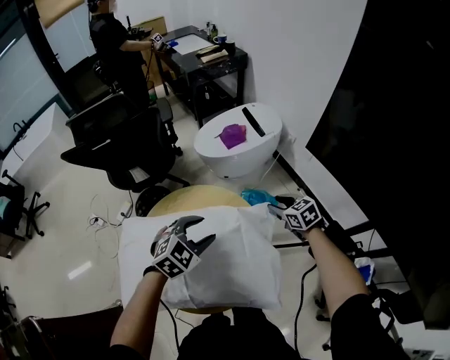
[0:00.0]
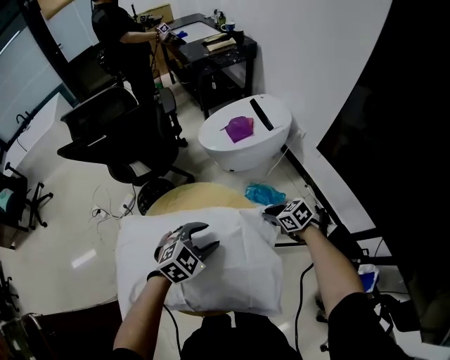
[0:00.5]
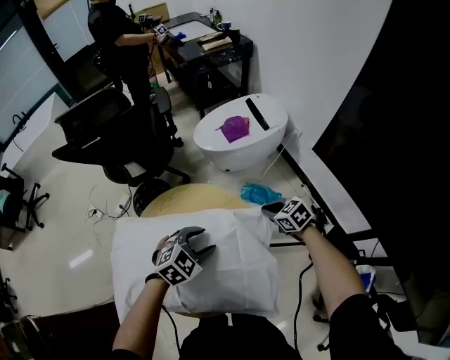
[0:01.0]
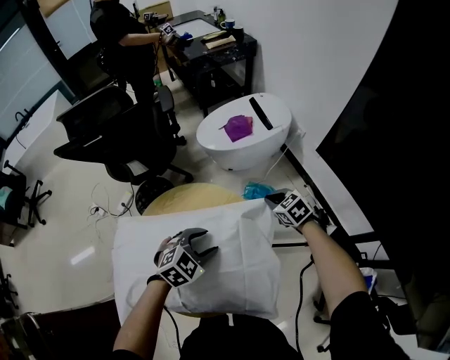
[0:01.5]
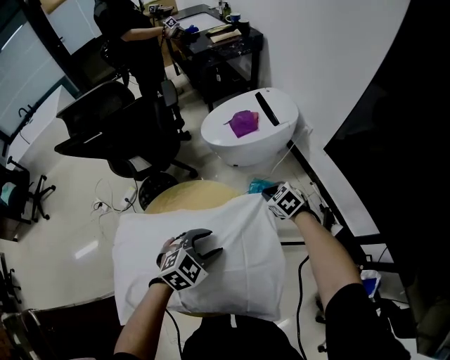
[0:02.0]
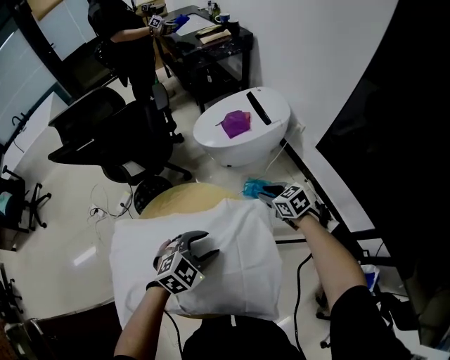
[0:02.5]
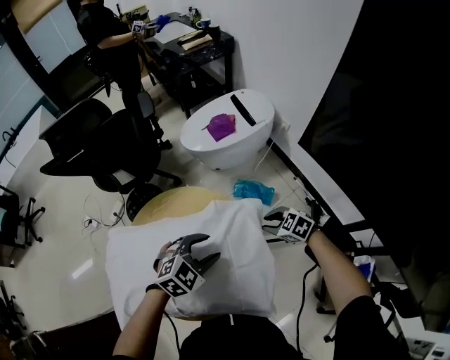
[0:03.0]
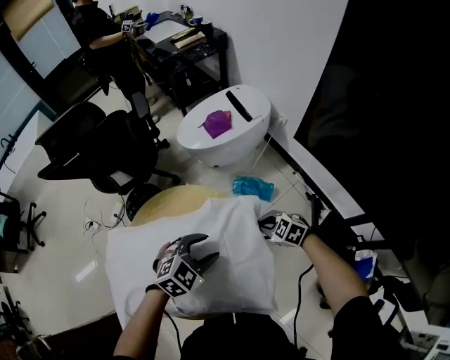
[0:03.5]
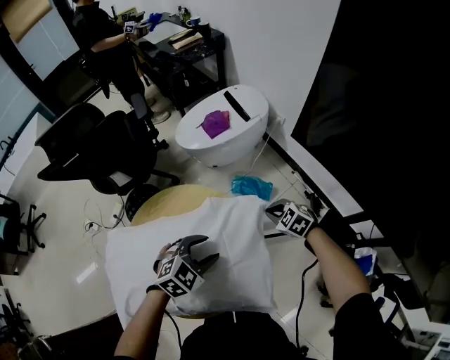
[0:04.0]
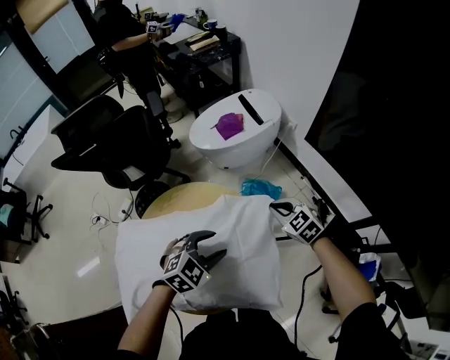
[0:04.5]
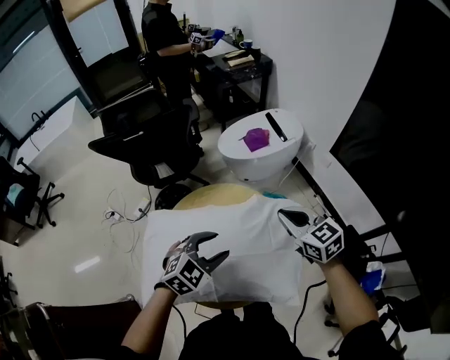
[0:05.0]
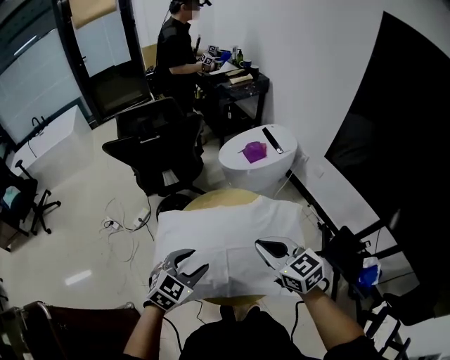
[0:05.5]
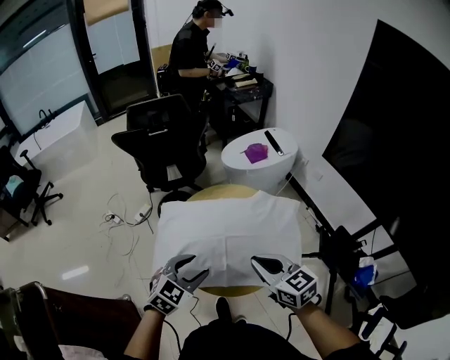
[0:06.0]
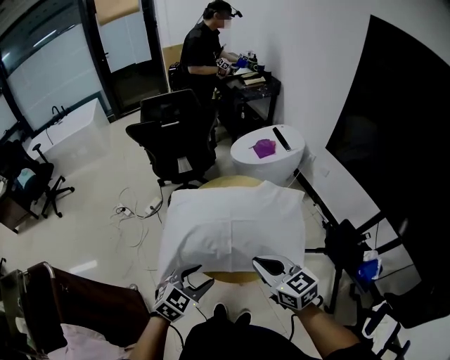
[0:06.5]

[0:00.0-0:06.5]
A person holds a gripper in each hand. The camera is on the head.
0:00.0 to 0:02.0: The right gripper is displaced downward and forward by about 10 cm, swivels about 20 degrees, and closes, while the left gripper goes about 5 cm downward.
0:02.0 to 0:04.5: The right gripper moves about 15 cm, and opens and closes again.
0:04.5 to 0:06.5: The right gripper goes about 50 cm backward, to the left and upward, and swivels about 30 degrees. Meanwhile the left gripper heads backward and to the left, covering some 35 cm, and rotates approximately 20 degrees.

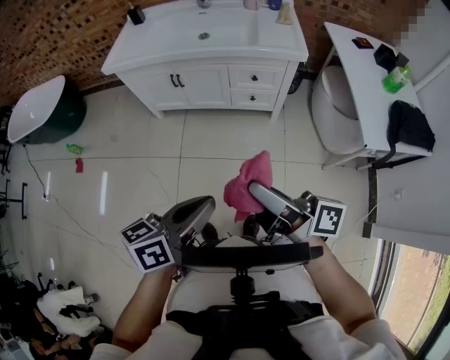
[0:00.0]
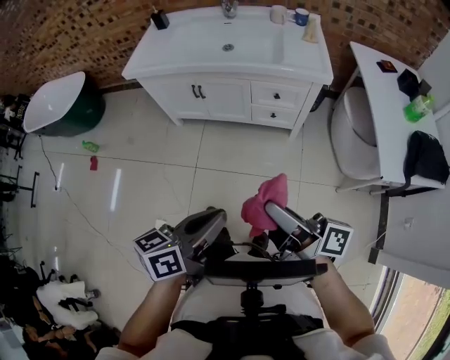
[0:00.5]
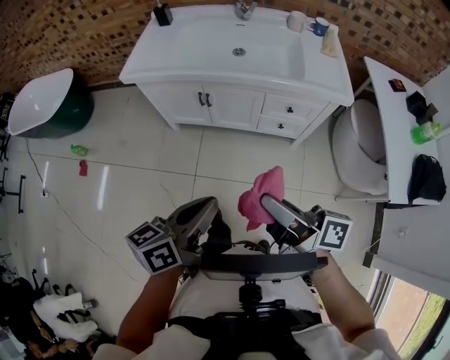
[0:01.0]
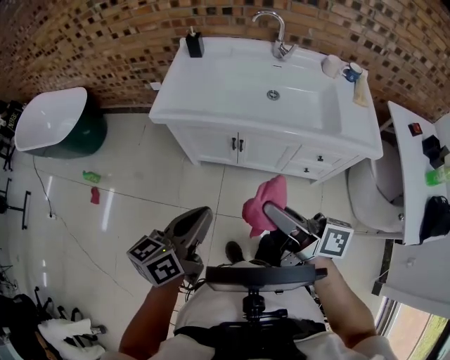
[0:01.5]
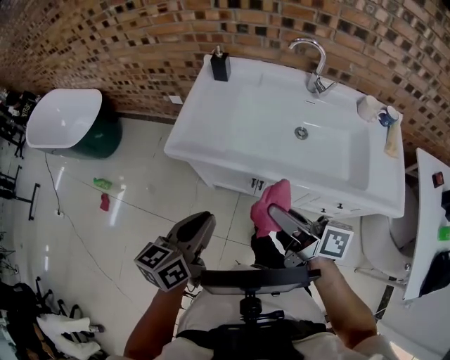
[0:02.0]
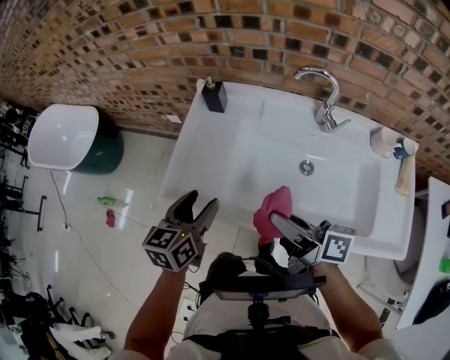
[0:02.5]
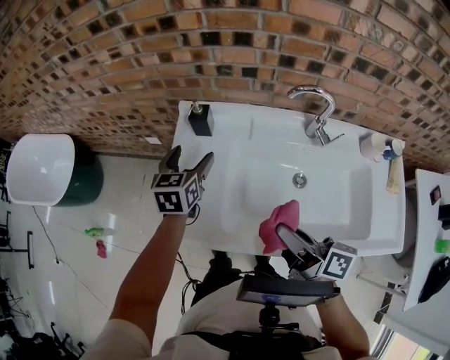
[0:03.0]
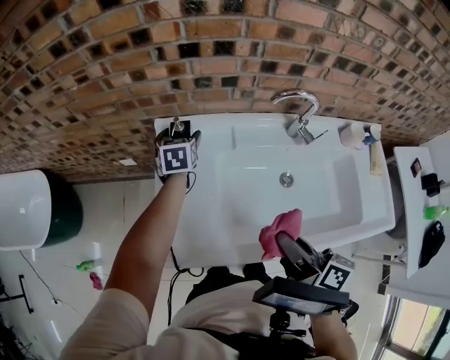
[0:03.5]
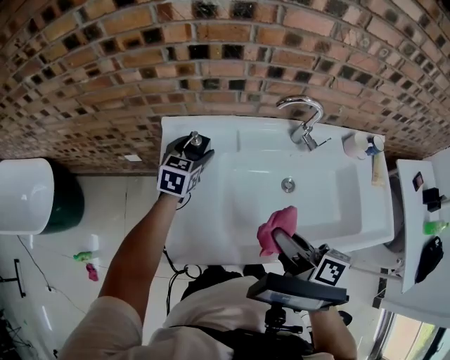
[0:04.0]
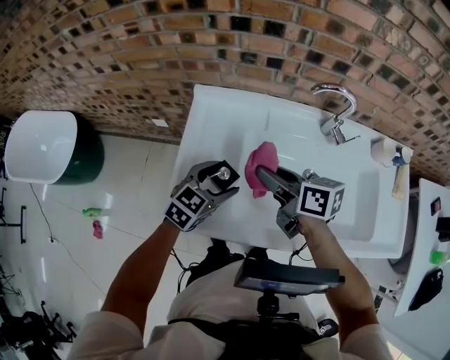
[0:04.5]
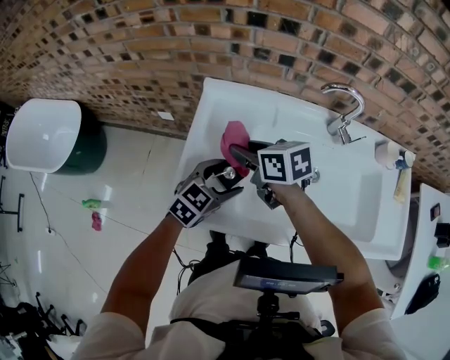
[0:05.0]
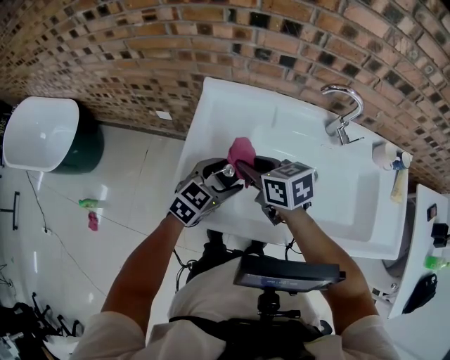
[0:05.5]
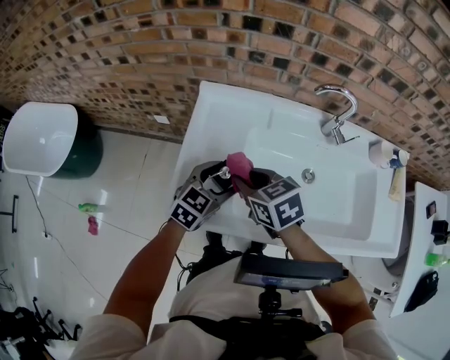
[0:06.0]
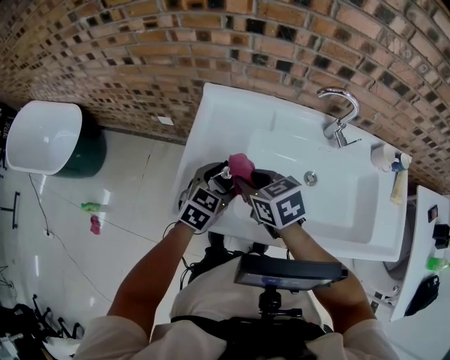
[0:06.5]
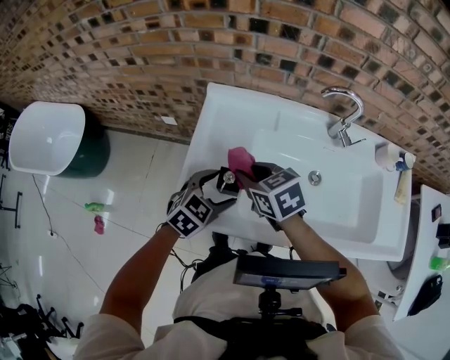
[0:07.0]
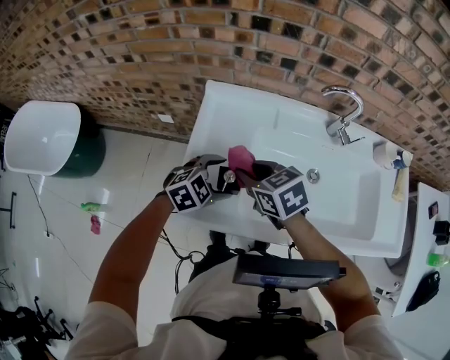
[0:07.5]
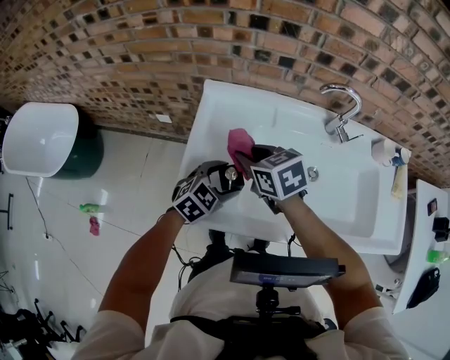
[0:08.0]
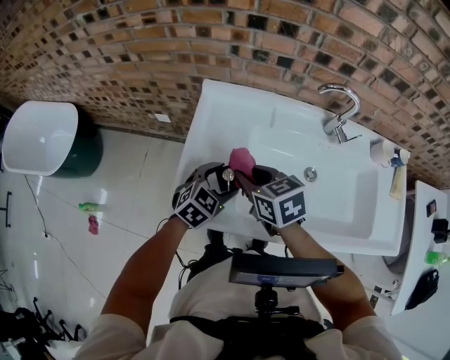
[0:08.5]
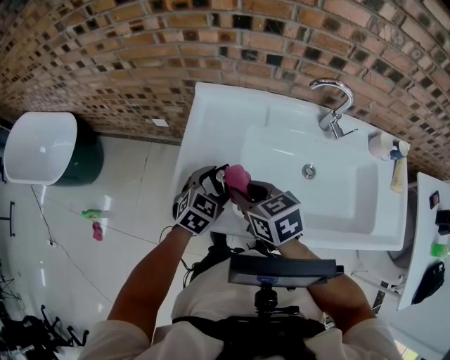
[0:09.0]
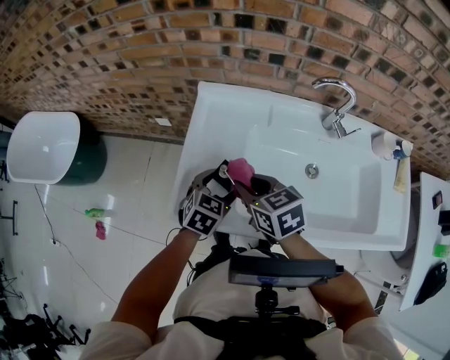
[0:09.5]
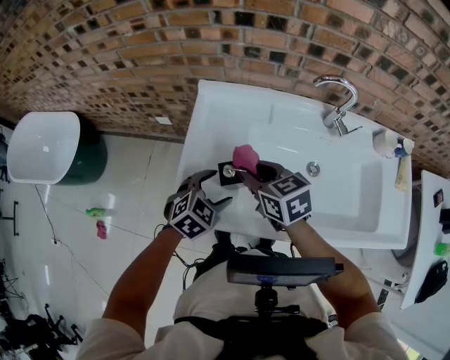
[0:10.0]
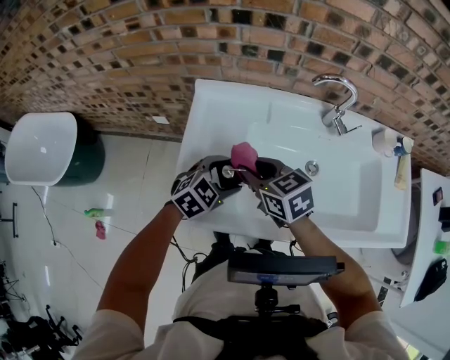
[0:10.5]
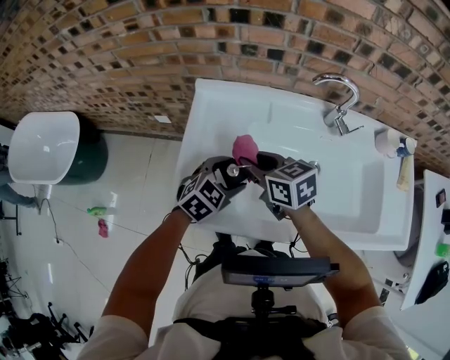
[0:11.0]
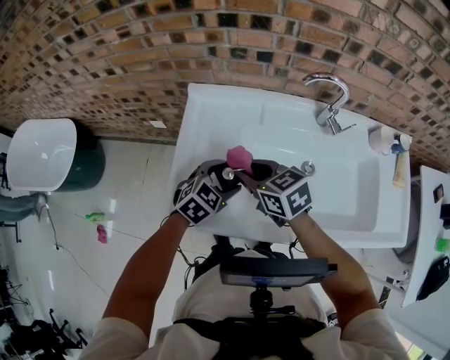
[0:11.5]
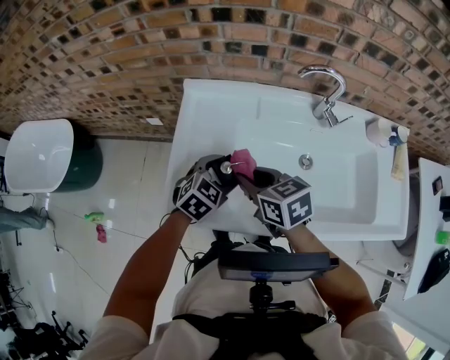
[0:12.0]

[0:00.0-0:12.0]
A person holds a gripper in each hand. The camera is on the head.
0:00.0 to 0:02.0: Both grippers are carried forward and to the left, some 70 cm. The left gripper swivels approximately 30 degrees.
0:02.0 to 0:04.0: The right gripper goes about 30 cm forward, and turns by roughly 30 degrees. The left gripper shifts some 60 cm forward, changes its angle by some 40 degrees, and opens up.
0:04.0 to 0:06.0: The right gripper is displaced to the left by some 15 cm, and rotates some 60 degrees. The left gripper goes some 20 cm backward.
0:06.0 to 0:08.0: The right gripper heads forward, covering roughly 5 cm.
0:10.0 to 0:12.0: The left gripper shifts roughly 5 cm to the right.

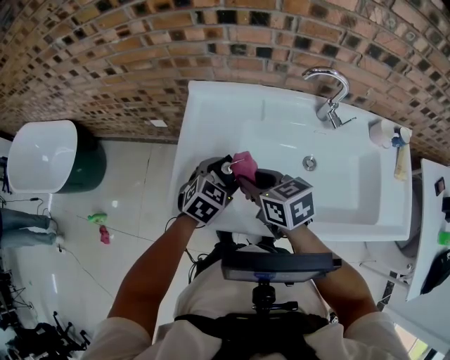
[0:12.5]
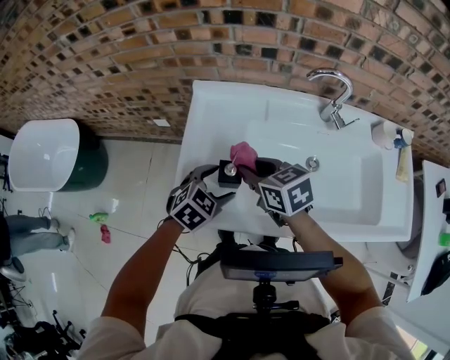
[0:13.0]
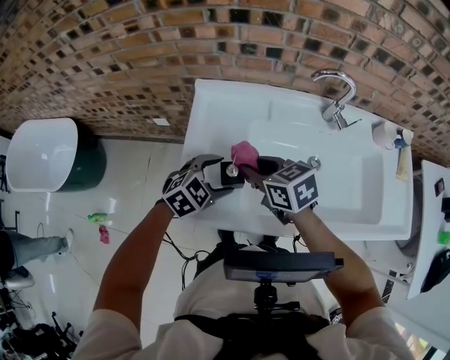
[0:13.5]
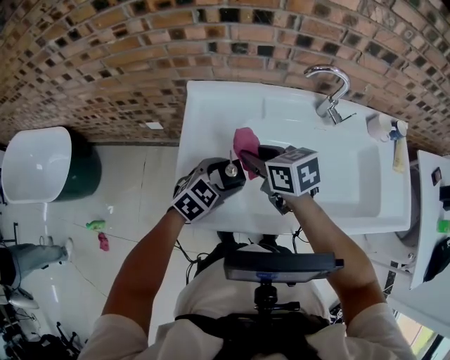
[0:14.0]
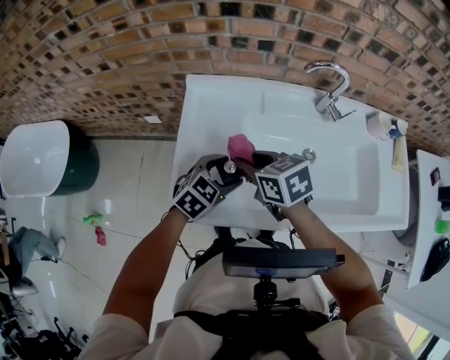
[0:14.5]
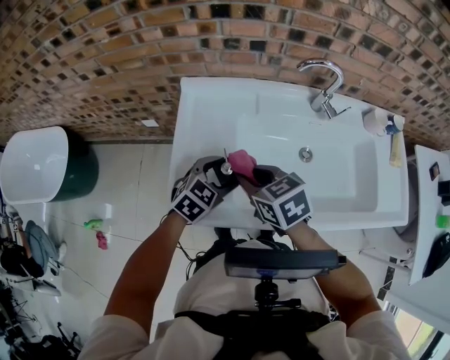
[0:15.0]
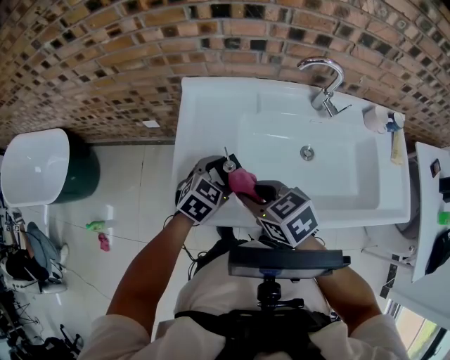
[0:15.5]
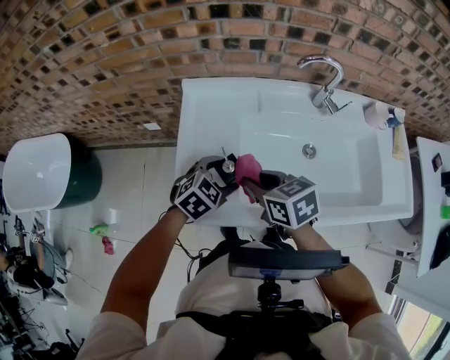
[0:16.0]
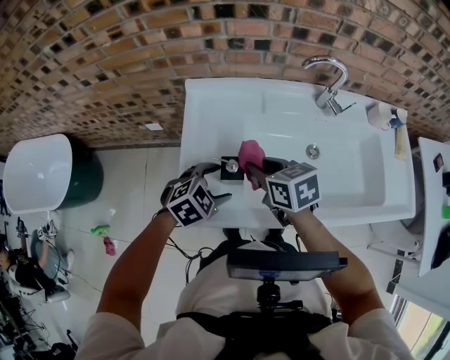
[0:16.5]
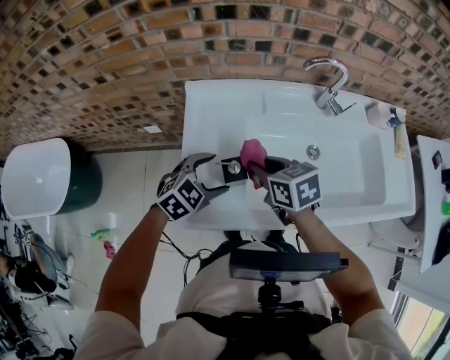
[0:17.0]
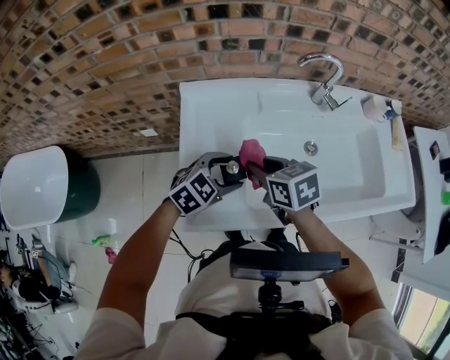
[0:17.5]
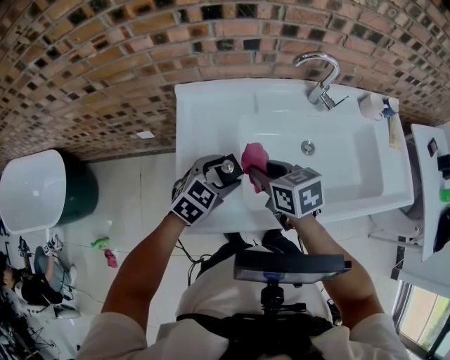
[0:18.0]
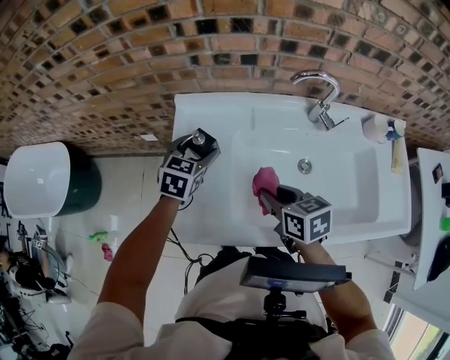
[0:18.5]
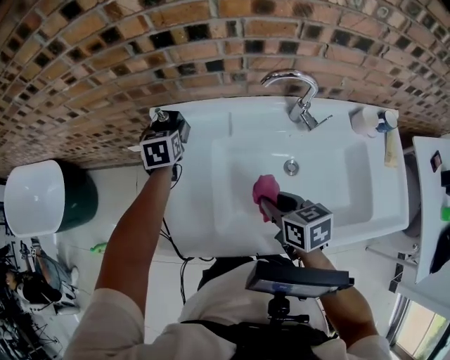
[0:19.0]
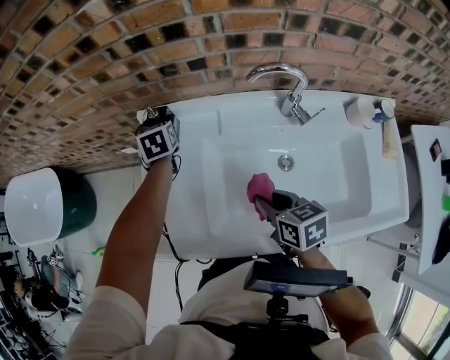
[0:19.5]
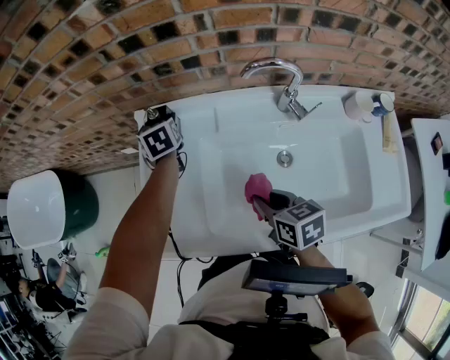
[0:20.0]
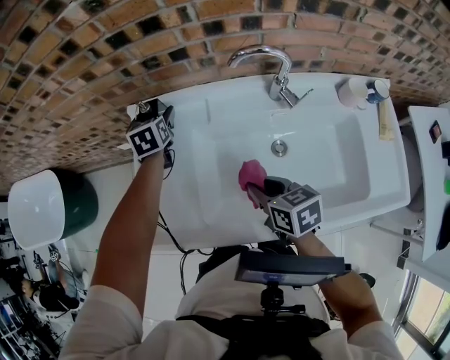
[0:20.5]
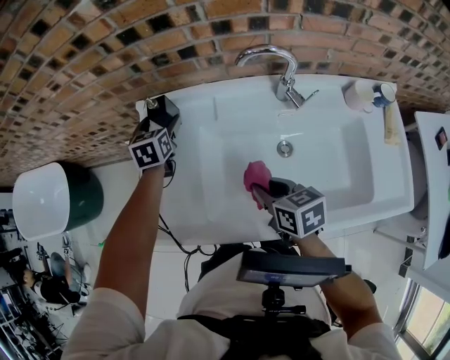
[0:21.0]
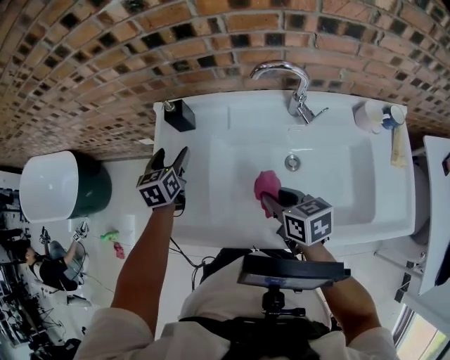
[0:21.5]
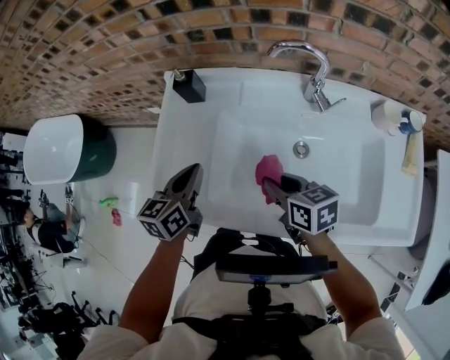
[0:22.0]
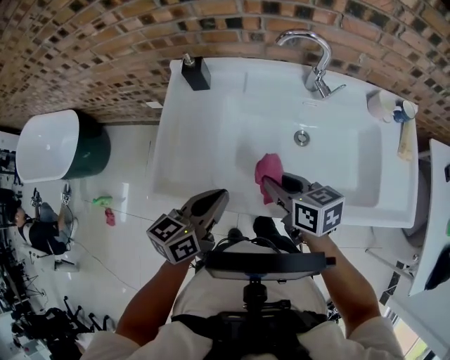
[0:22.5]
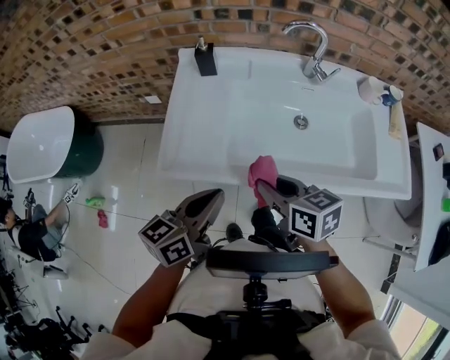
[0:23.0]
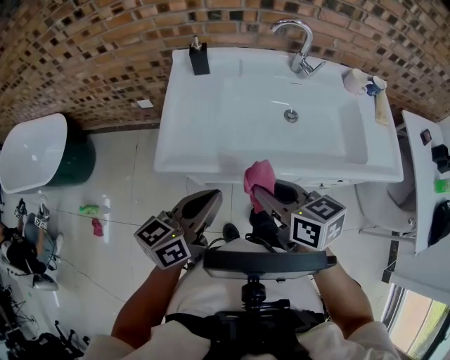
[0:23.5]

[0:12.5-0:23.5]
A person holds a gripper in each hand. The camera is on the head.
0:14.5 to 0:16.0: The right gripper is displaced backward by roughly 5 cm.
0:16.0 to 0:18.0: The grippers stay close to where they were, moving slightly.
0:18.0 to 0:20.0: The right gripper moves approximately 20 cm; the left gripper moves about 30 cm, and swivels about 70 degrees.
0:20.0 to 0:21.5: The left gripper is displaced backward by about 15 cm.
0:21.5 to 0:23.5: The right gripper goes about 30 cm backward and to the left; the left gripper is displaced backward by approximately 40 cm, swivels some 50 degrees, and closes its fingers.
